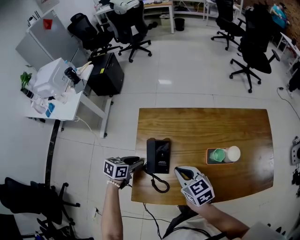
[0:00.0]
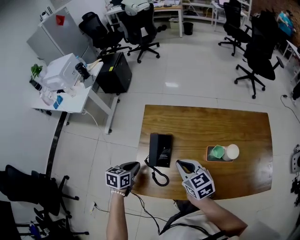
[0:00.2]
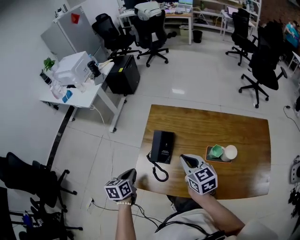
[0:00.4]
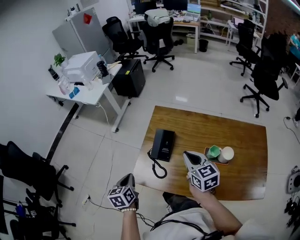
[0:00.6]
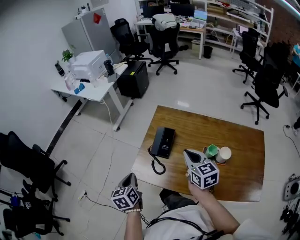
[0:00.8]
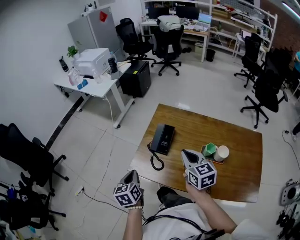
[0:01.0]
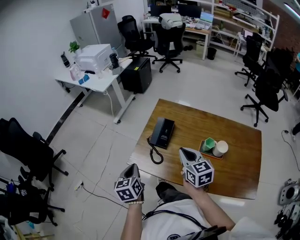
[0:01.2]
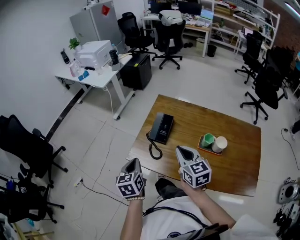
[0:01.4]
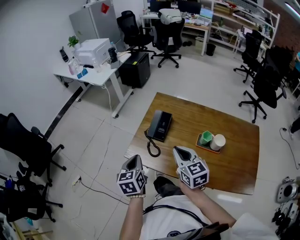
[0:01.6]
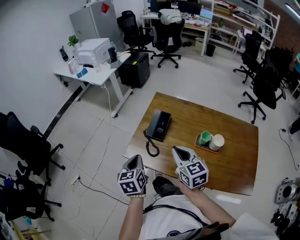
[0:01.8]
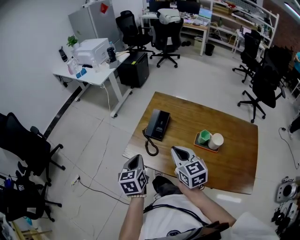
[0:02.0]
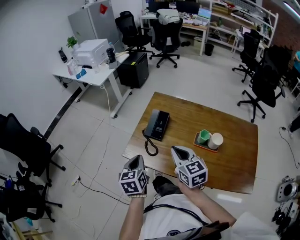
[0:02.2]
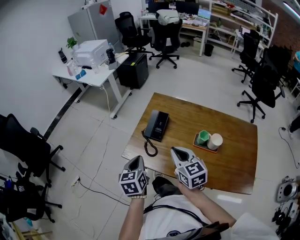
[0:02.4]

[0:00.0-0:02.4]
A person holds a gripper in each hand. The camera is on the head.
0:00.0 to 0:01.2: The left gripper shifts by about 25 cm, turns by about 60 degrees, and closes. The right gripper travels upward by some 10 cm.
0:01.2 to 0:02.4: The left gripper is displaced to the right by roughly 5 cm.

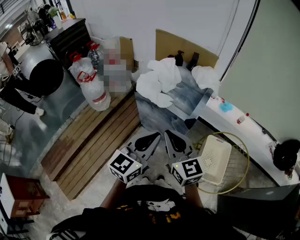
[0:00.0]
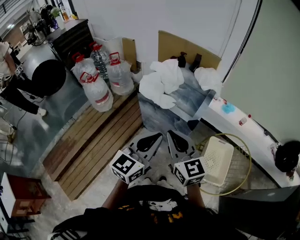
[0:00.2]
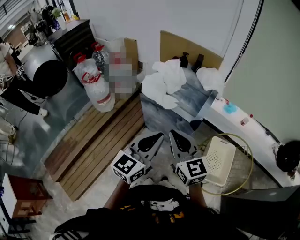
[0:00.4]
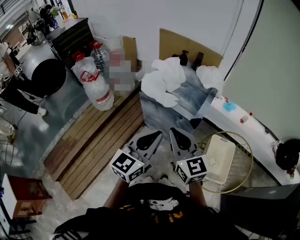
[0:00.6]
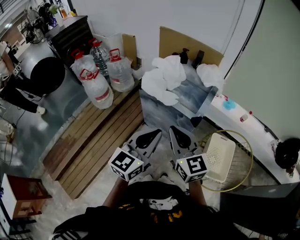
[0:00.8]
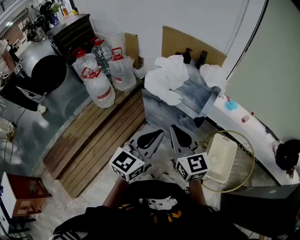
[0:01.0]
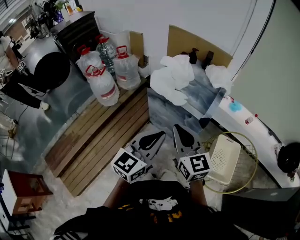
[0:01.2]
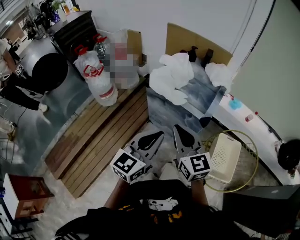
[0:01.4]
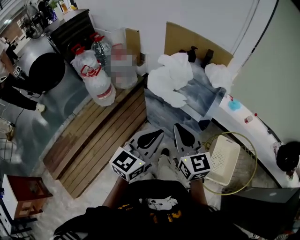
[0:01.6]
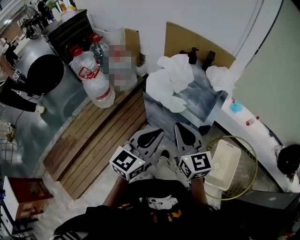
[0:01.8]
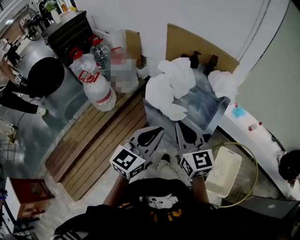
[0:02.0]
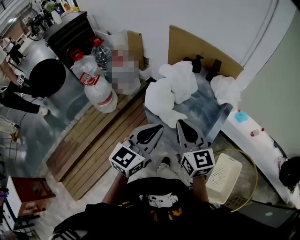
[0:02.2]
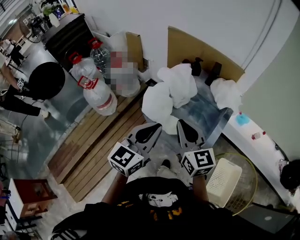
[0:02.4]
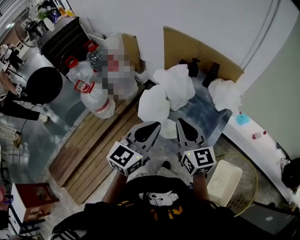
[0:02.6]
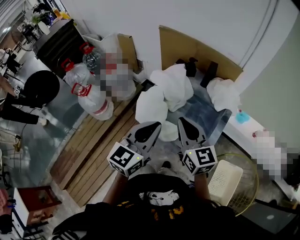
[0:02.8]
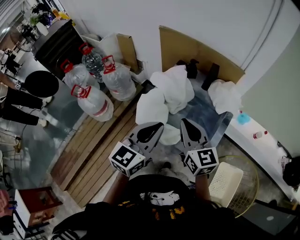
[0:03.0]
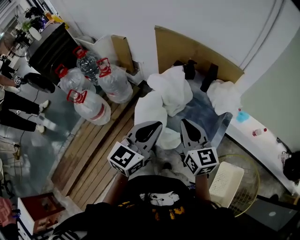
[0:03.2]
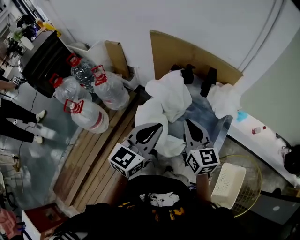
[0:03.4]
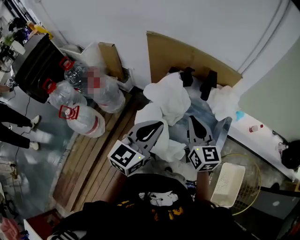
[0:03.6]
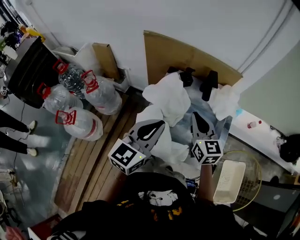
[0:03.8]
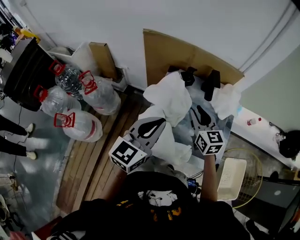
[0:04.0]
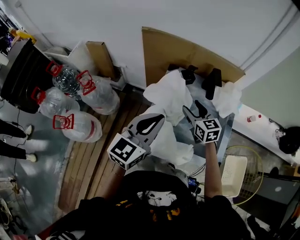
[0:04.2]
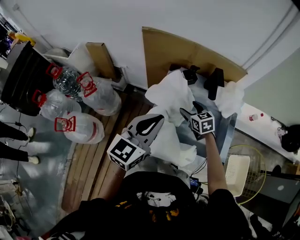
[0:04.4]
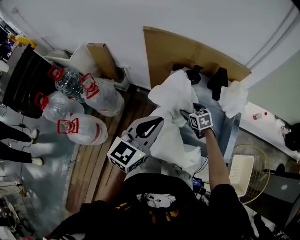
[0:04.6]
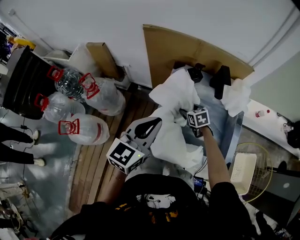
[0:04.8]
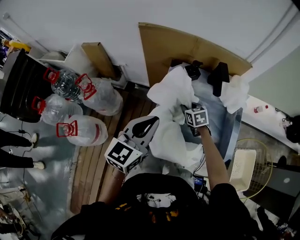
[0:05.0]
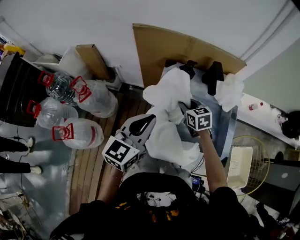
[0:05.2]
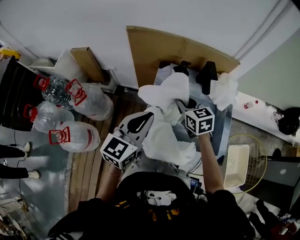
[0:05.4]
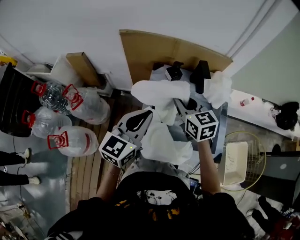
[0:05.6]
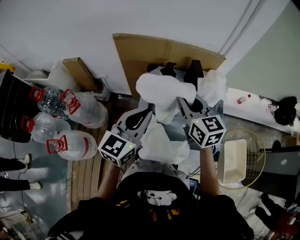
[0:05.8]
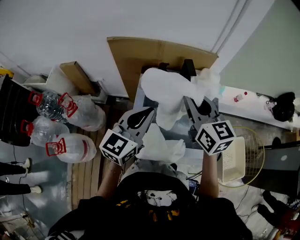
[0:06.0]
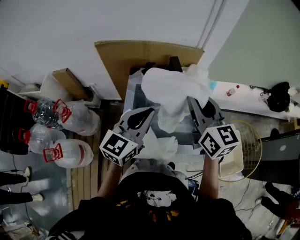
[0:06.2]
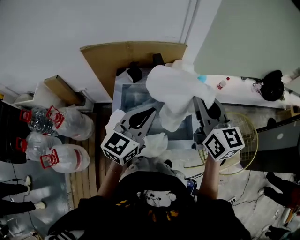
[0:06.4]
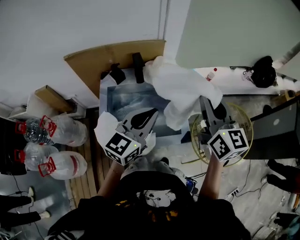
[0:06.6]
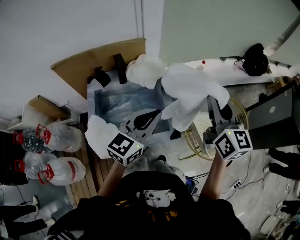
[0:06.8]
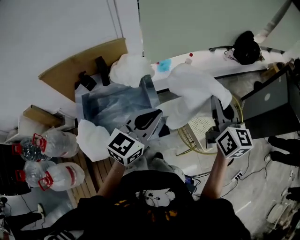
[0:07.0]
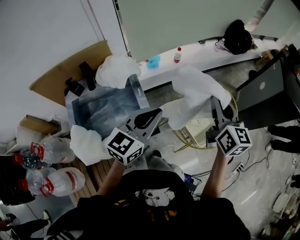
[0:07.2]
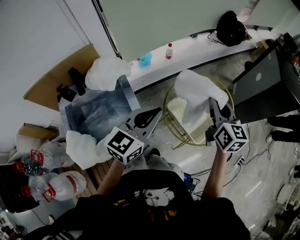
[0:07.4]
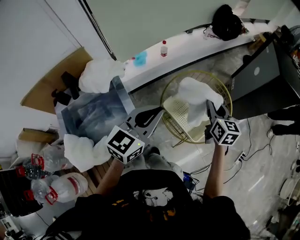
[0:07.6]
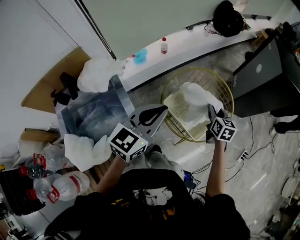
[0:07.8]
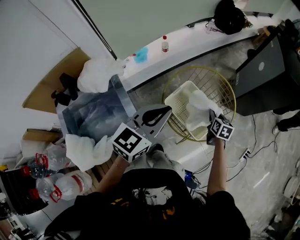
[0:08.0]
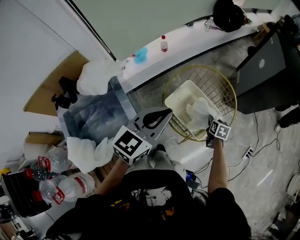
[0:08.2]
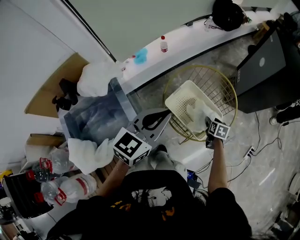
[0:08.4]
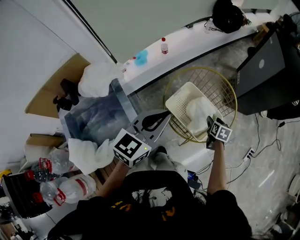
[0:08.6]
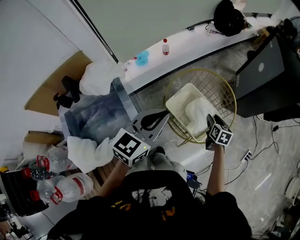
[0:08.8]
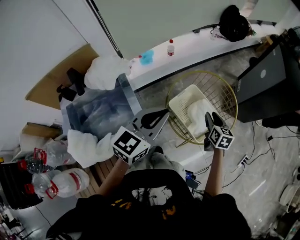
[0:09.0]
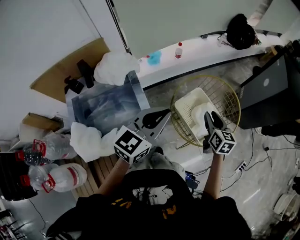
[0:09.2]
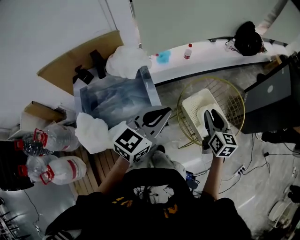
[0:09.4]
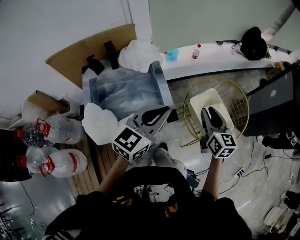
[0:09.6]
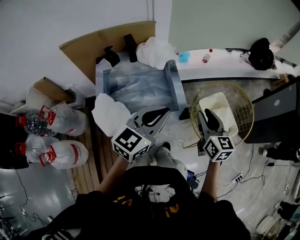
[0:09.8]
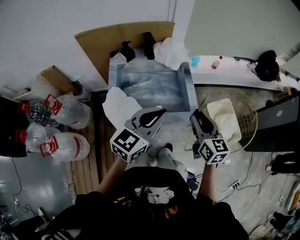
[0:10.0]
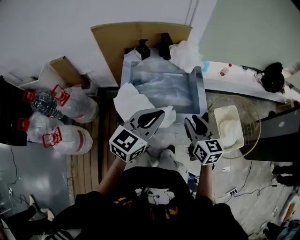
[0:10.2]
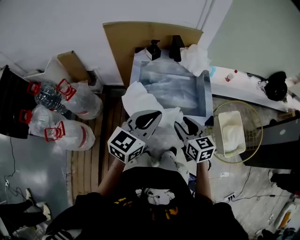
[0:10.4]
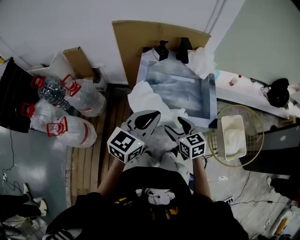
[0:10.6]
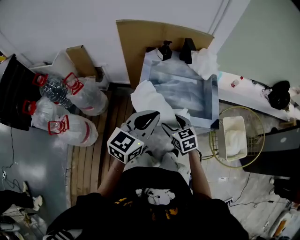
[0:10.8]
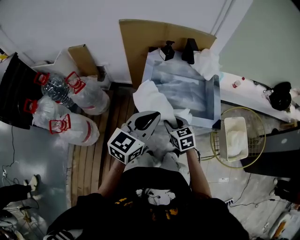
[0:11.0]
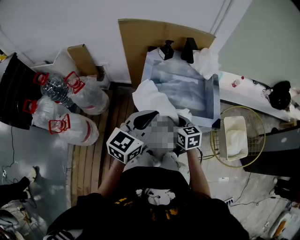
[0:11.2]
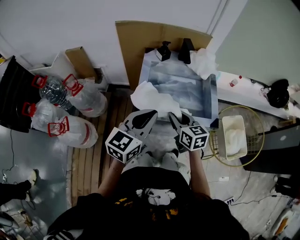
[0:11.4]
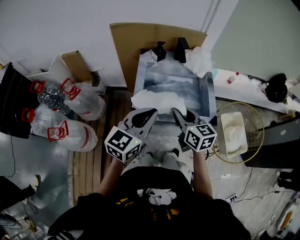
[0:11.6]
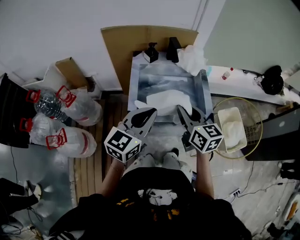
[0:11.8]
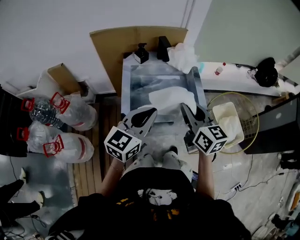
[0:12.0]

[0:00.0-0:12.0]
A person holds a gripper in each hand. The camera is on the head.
0:00.0 to 0:01.6: The left gripper travels to the left by approximately 5 cm, while the right gripper changes place by approximately 5 cm.
0:01.6 to 0:03.0: The grippers both shift forward by approximately 25 cm.
0:03.0 to 0:04.4: The left gripper goes some 20 cm forward and to the left. Meanwhile the right gripper heads forward and downward, covering about 30 cm, tilts its fingers some 30 degrees downward, and opens up.
0:04.4 to 0:06.0: The right gripper travels upward by about 25 cm, changes its angle by about 30 degrees, and closes its fingers; the left gripper ends up some 5 cm from where it was.
0:06.0 to 0:07.6: The pair of grippers is taken roughly 50 cm. The left gripper changes its angle by about 40 degrees. Meanwhile the right gripper swivels some 50 degrees.
0:07.6 to 0:09.0: The right gripper shifts roughly 10 cm downward.
0:09.0 to 0:10.4: The two grippers travel together, approximately 50 cm. The left gripper turns by about 30 degrees. The right gripper swivels approximately 50 degrees.
0:10.4 to 0:12.0: The right gripper is displaced upward by roughly 10 cm, and closes.

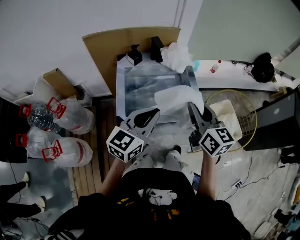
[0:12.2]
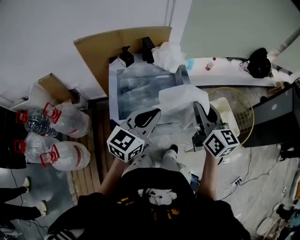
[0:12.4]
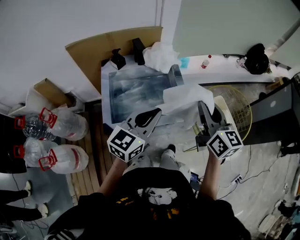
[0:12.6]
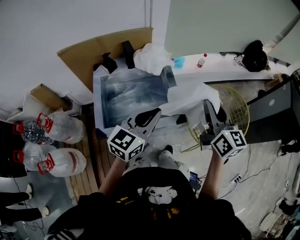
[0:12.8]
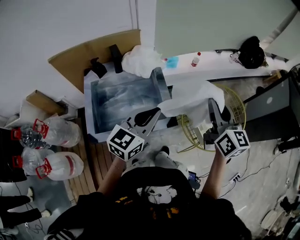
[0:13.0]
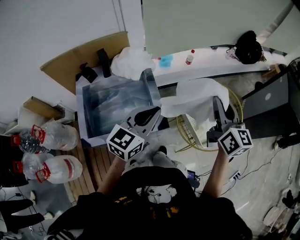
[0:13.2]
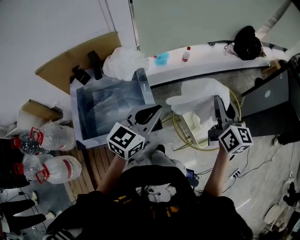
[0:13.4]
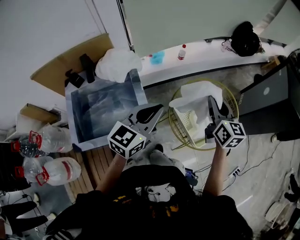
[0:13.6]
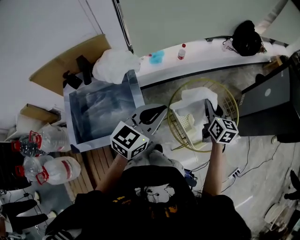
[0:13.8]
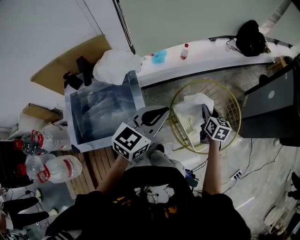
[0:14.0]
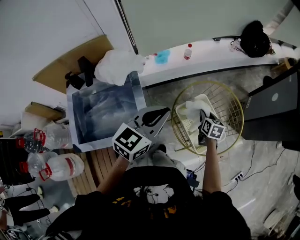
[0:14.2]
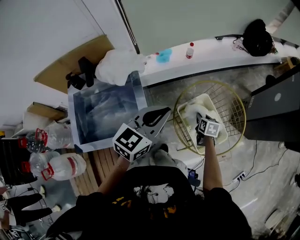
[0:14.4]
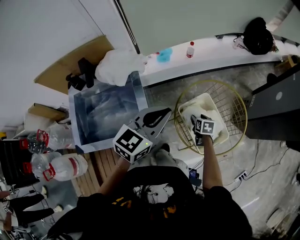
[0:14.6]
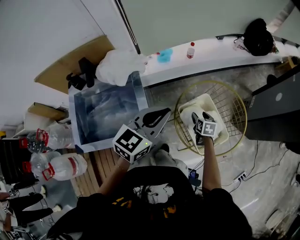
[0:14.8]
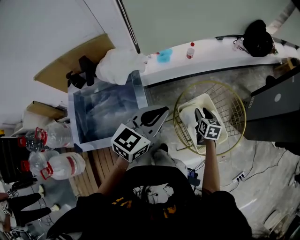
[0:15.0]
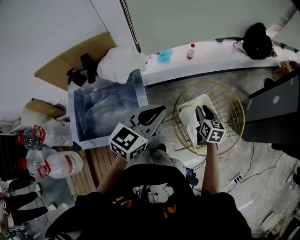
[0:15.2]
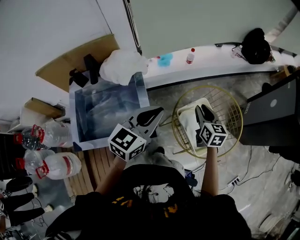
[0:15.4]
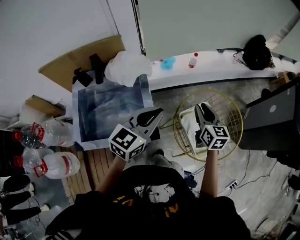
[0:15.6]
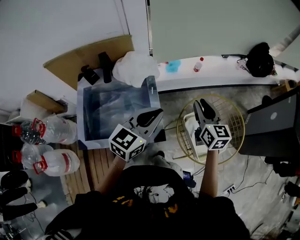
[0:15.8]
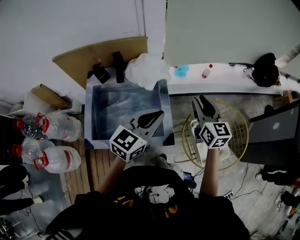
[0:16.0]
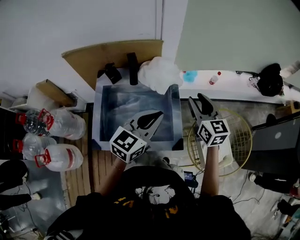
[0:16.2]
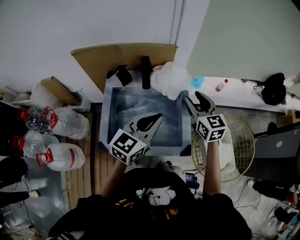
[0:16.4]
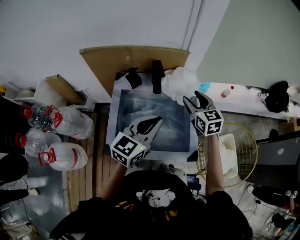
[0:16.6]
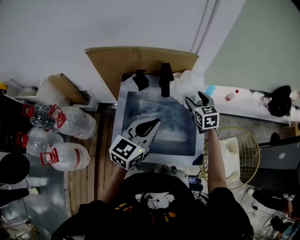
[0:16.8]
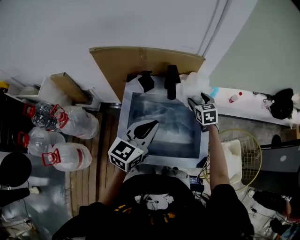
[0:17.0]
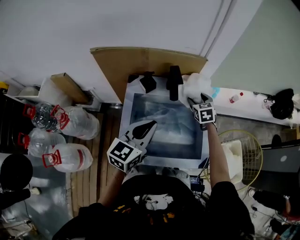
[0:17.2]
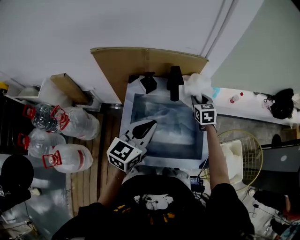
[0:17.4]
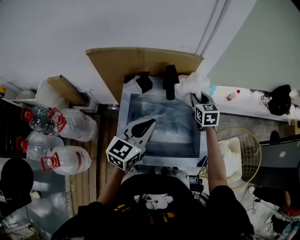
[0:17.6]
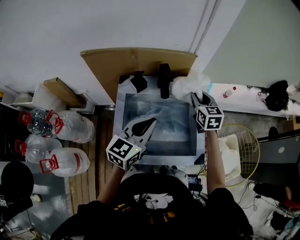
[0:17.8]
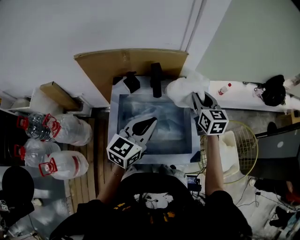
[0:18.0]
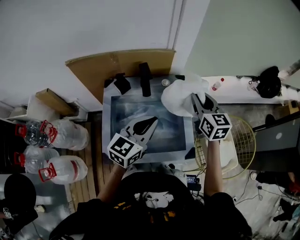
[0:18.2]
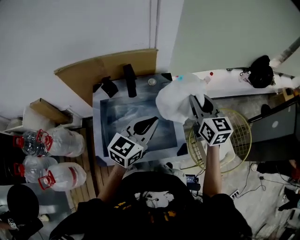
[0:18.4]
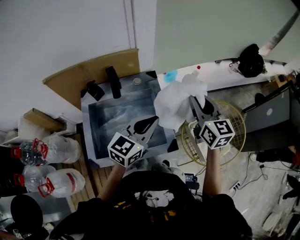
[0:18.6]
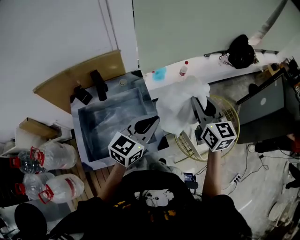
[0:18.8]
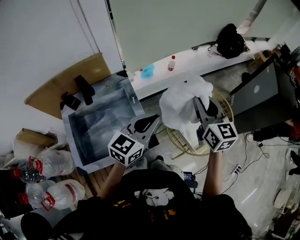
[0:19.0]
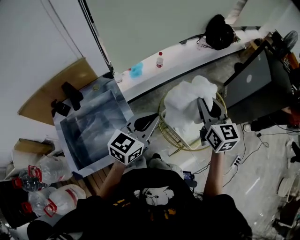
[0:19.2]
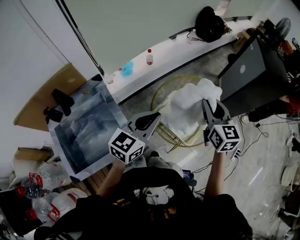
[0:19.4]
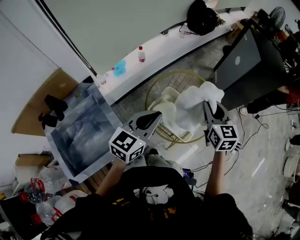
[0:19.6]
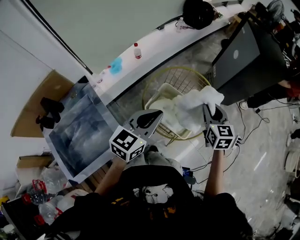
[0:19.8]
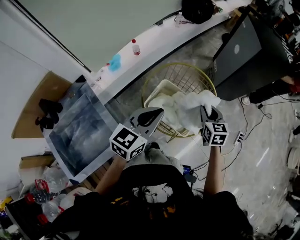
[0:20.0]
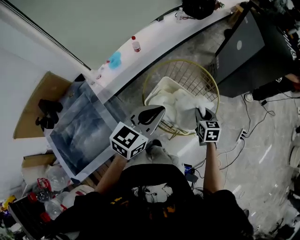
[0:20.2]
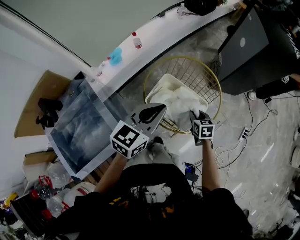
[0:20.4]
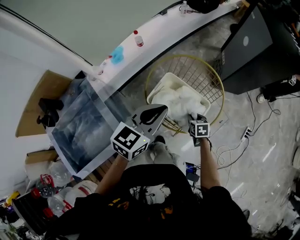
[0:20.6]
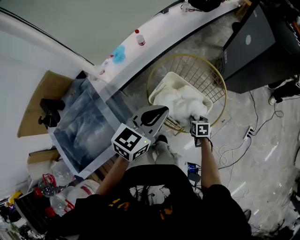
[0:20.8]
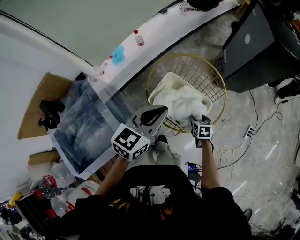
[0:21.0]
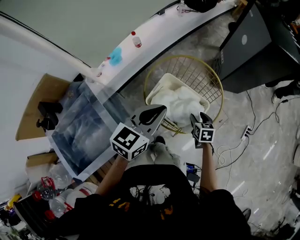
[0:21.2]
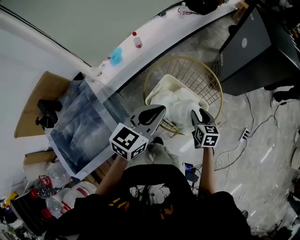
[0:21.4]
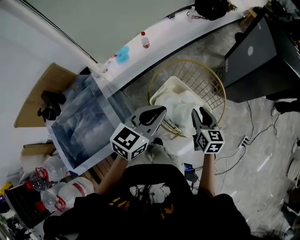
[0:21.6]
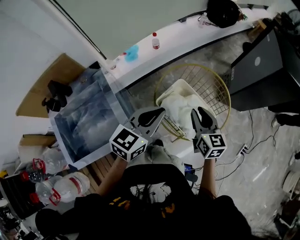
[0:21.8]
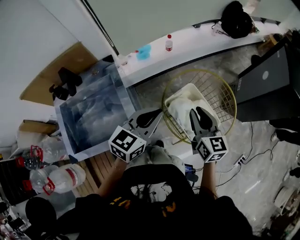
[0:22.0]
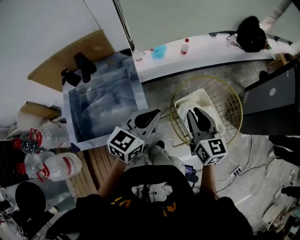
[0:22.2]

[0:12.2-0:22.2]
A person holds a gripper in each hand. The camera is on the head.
0:12.2 to 0:13.6: The two grippers go approximately 40 cm to the right and forward. The right gripper rotates roughly 20 degrees.
0:13.6 to 0:15.0: The right gripper goes about 25 cm downward, changes its angle by about 30 degrees, and opens up.
0:15.0 to 0:16.4: The right gripper goes about 40 cm to the left and upward, and rotates approximately 40 degrees, while the left gripper moves to the left, about 25 cm.
0:16.4 to 0:18.0: The left gripper moves to the left, approximately 10 cm. The right gripper is displaced forward by about 5 cm, moves some 15 cm downward and comes back, and closes.
0:18.0 to 0:19.4: The right gripper moves approximately 50 cm, and swivels roughly 30 degrees. The left gripper moves roughly 40 cm, and swivels about 40 degrees.
0:19.4 to 0:20.8: The left gripper shifts about 10 cm to the right and forward. The right gripper shifts approximately 40 cm downward, and tips its fingers downward by roughly 40 degrees.
0:20.8 to 0:22.2: The right gripper moves upward, about 35 cm, angles its fingers upward, by approximately 50 degrees, and opens, then closes once more. The left gripper shifts by about 15 cm, and changes its angle by approximately 30 degrees.
